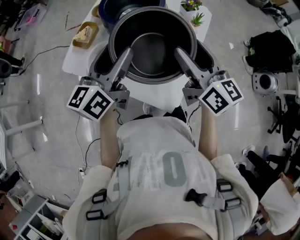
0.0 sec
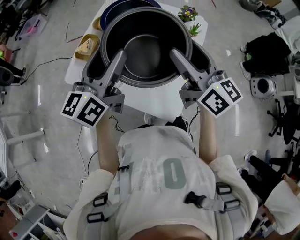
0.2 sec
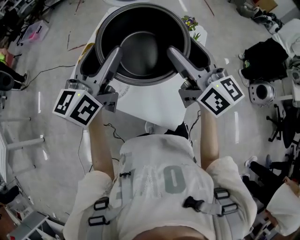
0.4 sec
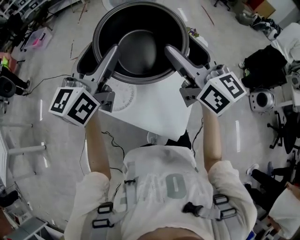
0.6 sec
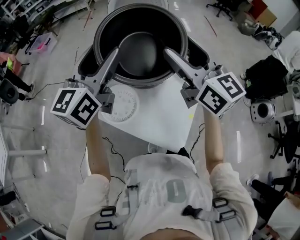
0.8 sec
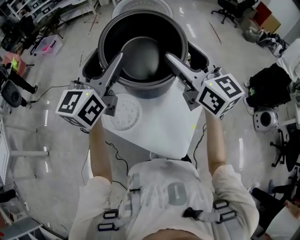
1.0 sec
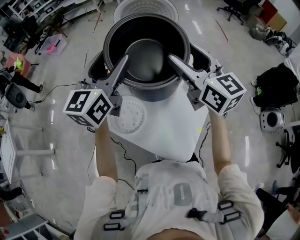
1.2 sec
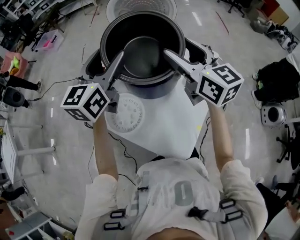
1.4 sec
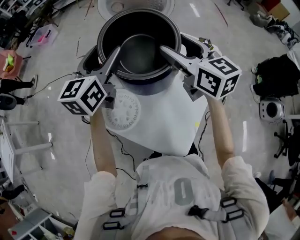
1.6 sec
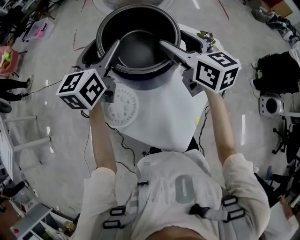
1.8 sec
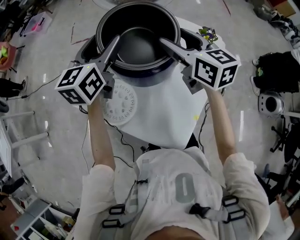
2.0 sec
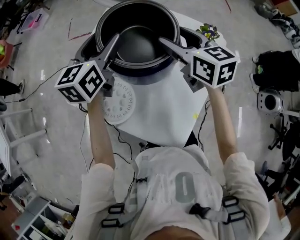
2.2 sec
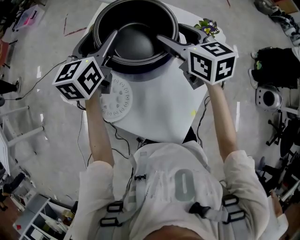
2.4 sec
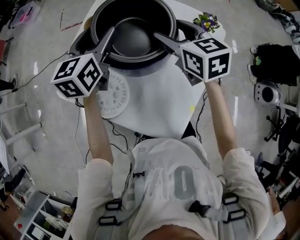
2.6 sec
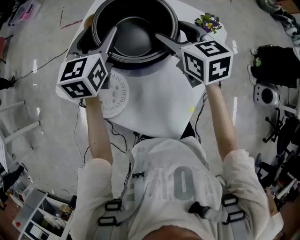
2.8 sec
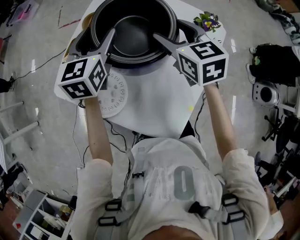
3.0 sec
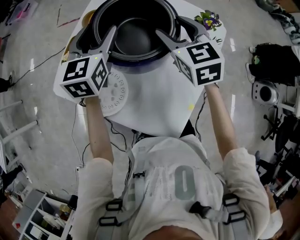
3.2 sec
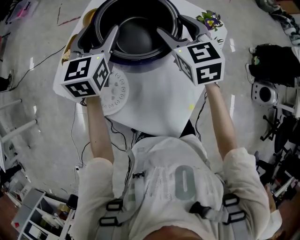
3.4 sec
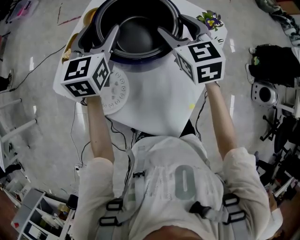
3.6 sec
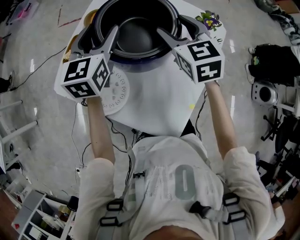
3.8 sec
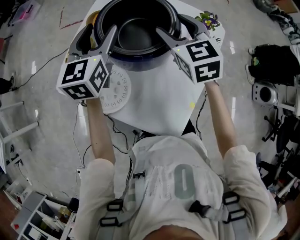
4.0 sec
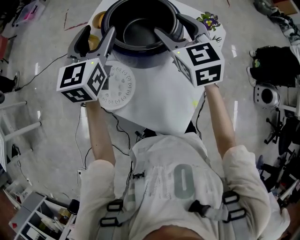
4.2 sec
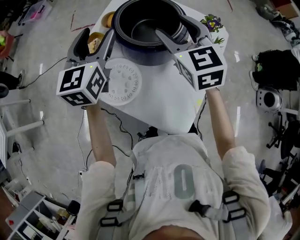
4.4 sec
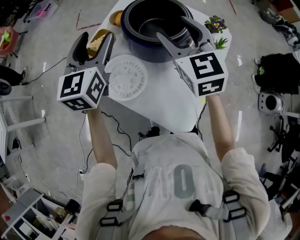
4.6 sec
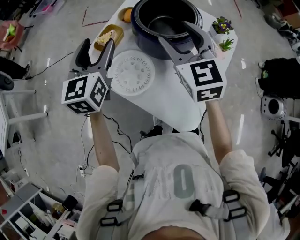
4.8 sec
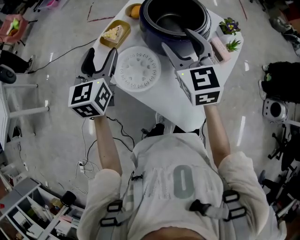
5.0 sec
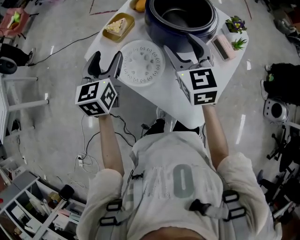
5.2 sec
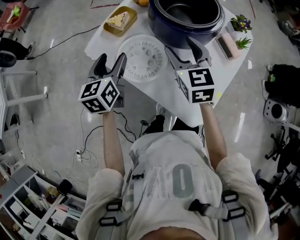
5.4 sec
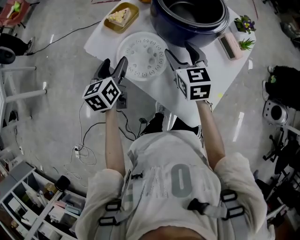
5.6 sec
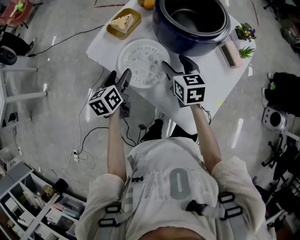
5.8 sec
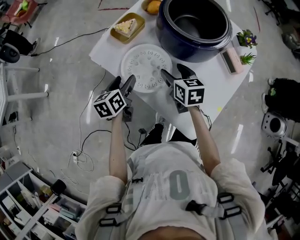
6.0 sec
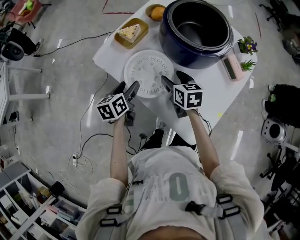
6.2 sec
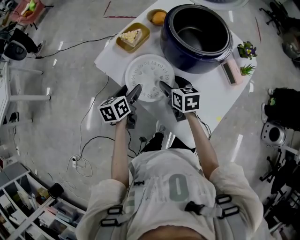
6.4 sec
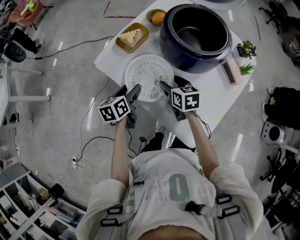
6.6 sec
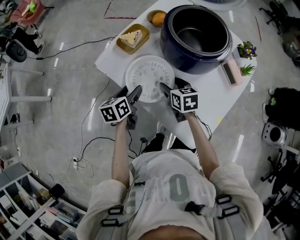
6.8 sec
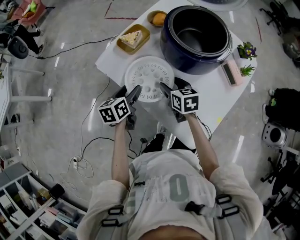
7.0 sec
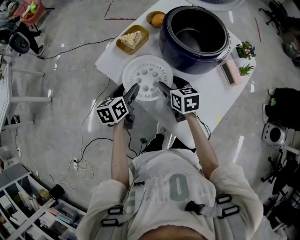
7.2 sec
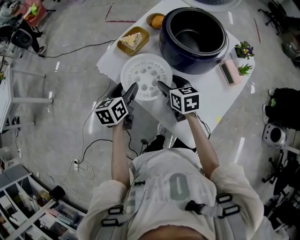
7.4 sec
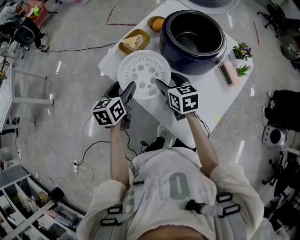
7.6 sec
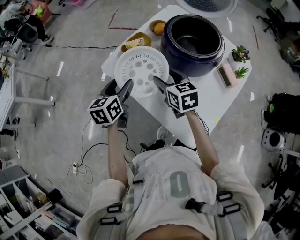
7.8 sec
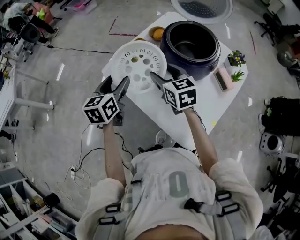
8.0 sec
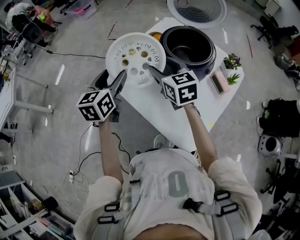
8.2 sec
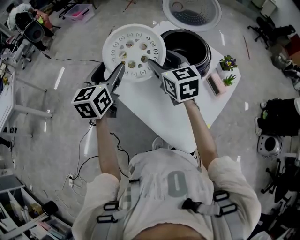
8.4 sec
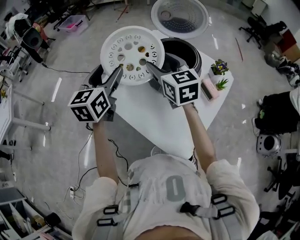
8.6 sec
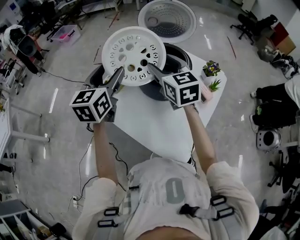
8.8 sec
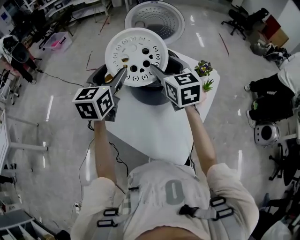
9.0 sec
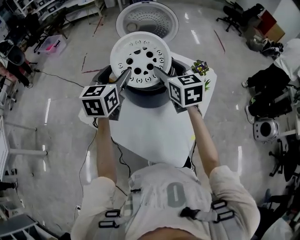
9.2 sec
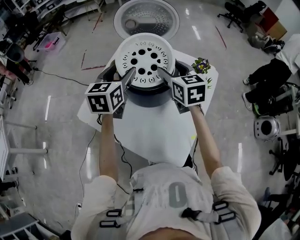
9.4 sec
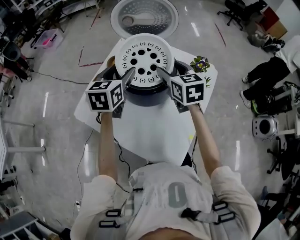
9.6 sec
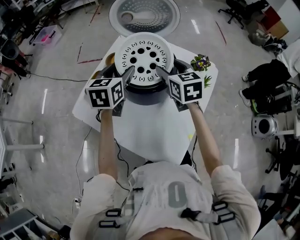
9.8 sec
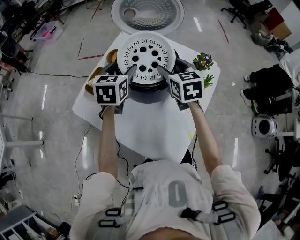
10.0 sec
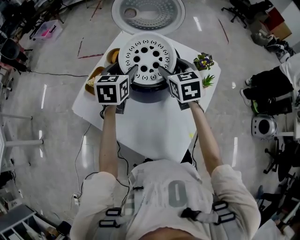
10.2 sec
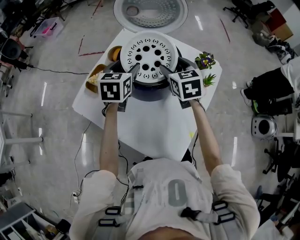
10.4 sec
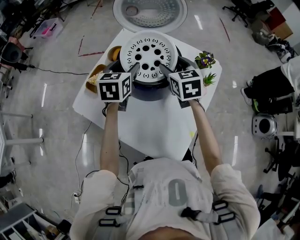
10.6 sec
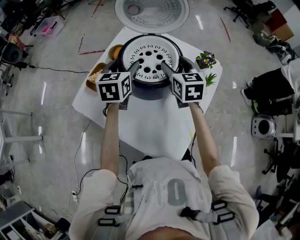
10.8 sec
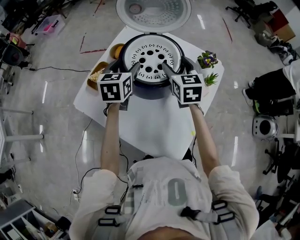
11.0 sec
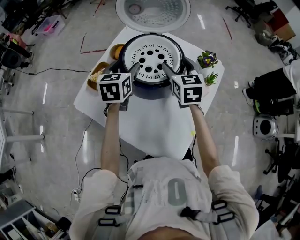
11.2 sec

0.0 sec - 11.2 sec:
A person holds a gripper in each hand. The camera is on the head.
0.0 sec - 1.6 sec: The grippers both shift forward by roughly 20 cm. The left gripper turns by some 20 degrees.
1.6 sec - 3.2 sec: Both grippers move downward, approximately 15 cm. The right gripper turns by roughly 30 degrees.
3.2 sec - 4.8 sec: The right gripper moves to the left, backward and upward, some 20 cm; the left gripper heads backward, to the left and upward, covering about 20 cm.
4.8 sec - 6.4 sec: Both grippers move downward, some 25 cm. The right gripper changes its angle by roughly 40 degrees. The left gripper changes its angle by roughly 40 degrees.
6.4 sec - 8.0 sec: The two grippers go roughly 15 cm upward. The right gripper swivels approximately 20 degrees. The left gripper changes its angle by about 20 degrees.
8.0 sec - 9.6 sec: The grippers both shift to the right and forward by about 25 cm. The right gripper swivels approximately 20 degrees. The left gripper swivels approximately 20 degrees.
9.6 sec - 11.2 sec: The left gripper is displaced downward by about 5 cm.

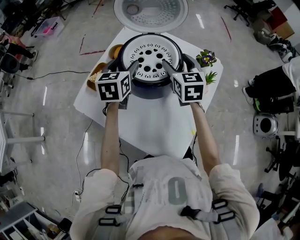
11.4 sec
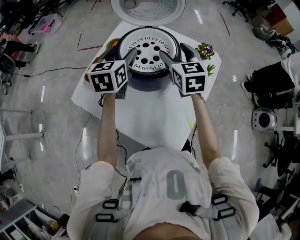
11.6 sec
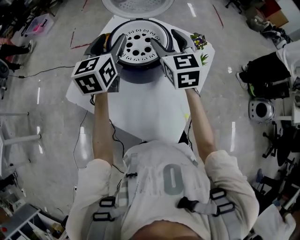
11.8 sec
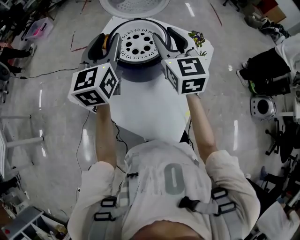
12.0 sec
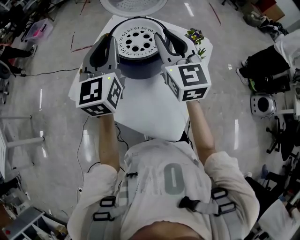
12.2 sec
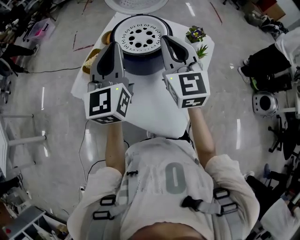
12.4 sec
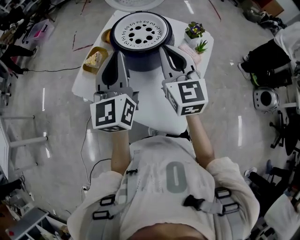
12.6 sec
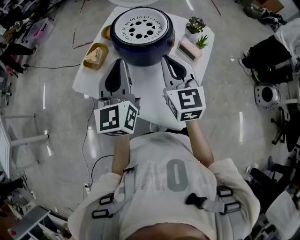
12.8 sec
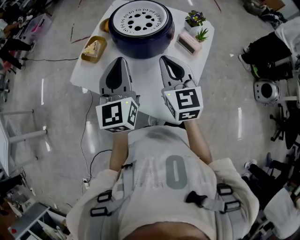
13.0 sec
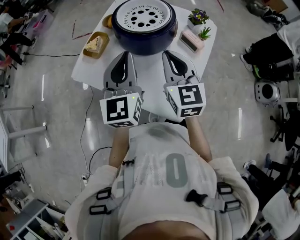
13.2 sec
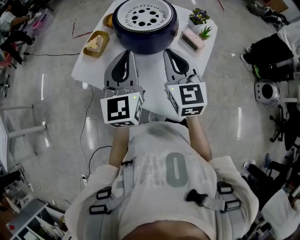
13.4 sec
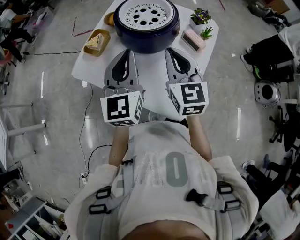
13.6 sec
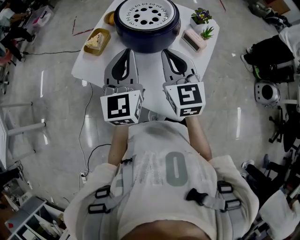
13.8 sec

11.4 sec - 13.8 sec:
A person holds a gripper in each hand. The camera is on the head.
11.4 sec - 12.6 sec: The grippers both shift backward and upward by roughly 20 cm. The left gripper points its fingers roughly 30 degrees further upward, and closes its fingers. Meanwhile the right gripper closes its fingers.
12.6 sec - 13.8 sec: Both grippers travel together downward, approximately 5 cm.

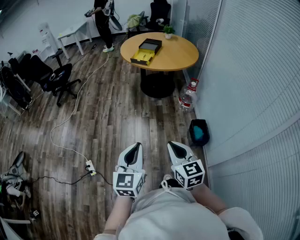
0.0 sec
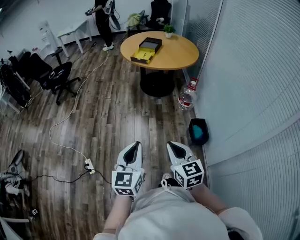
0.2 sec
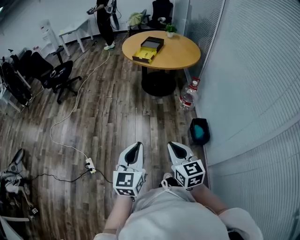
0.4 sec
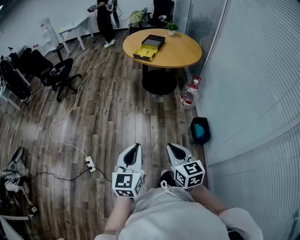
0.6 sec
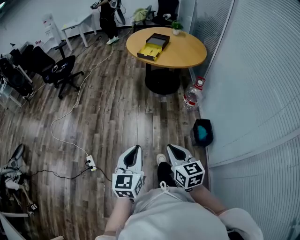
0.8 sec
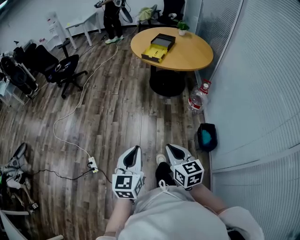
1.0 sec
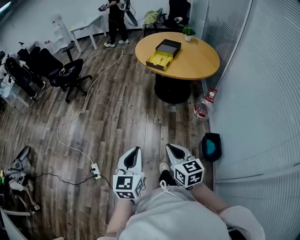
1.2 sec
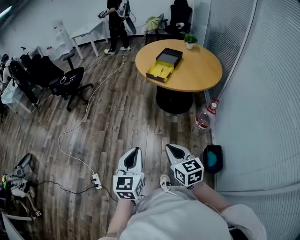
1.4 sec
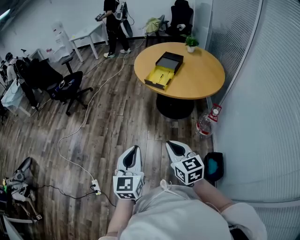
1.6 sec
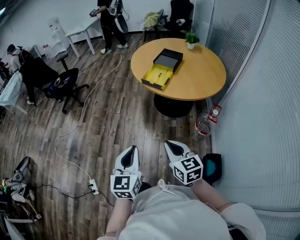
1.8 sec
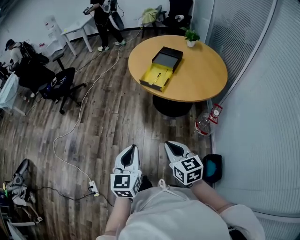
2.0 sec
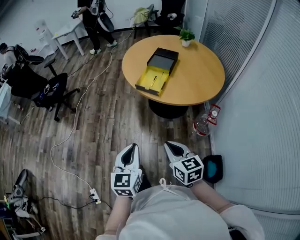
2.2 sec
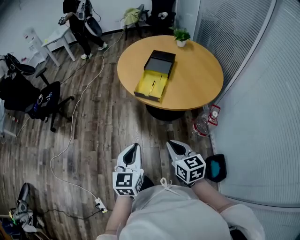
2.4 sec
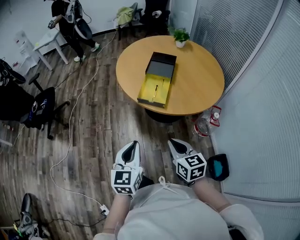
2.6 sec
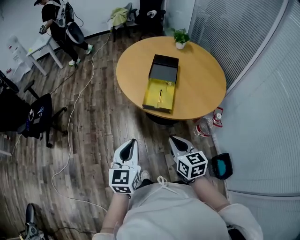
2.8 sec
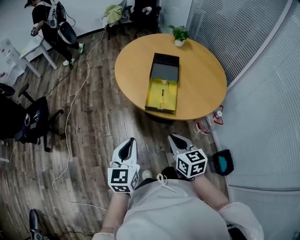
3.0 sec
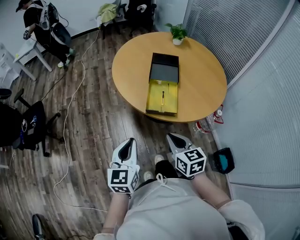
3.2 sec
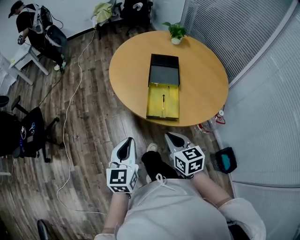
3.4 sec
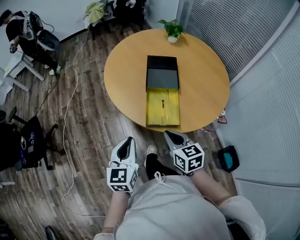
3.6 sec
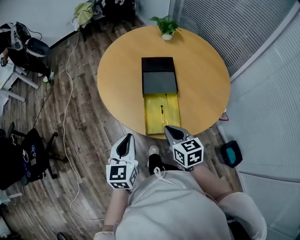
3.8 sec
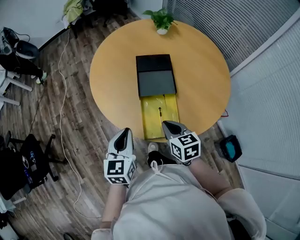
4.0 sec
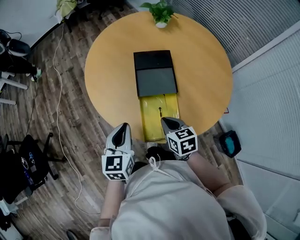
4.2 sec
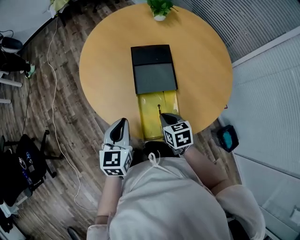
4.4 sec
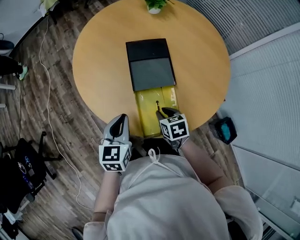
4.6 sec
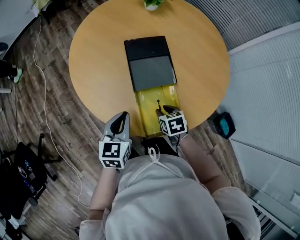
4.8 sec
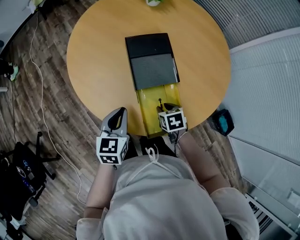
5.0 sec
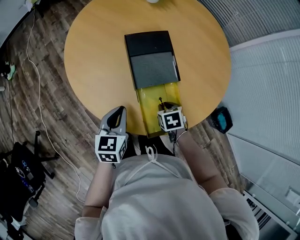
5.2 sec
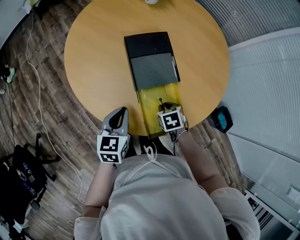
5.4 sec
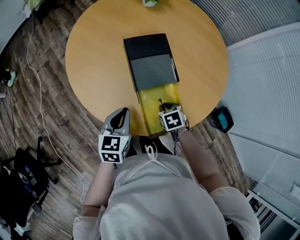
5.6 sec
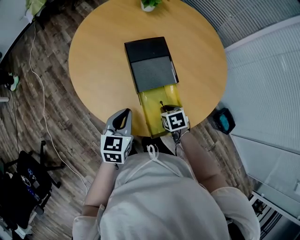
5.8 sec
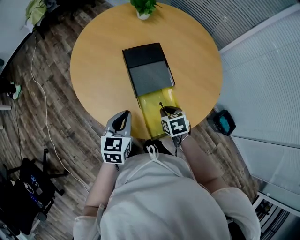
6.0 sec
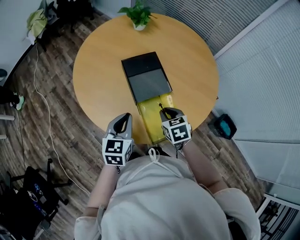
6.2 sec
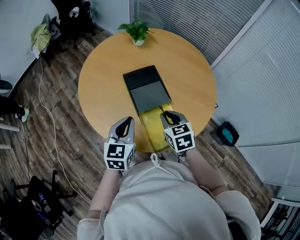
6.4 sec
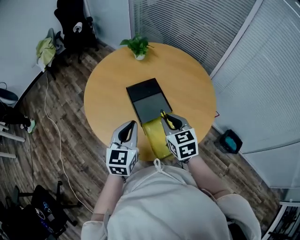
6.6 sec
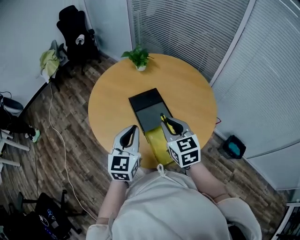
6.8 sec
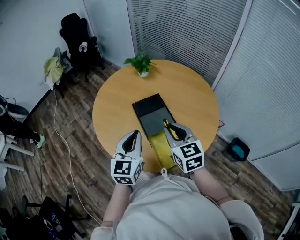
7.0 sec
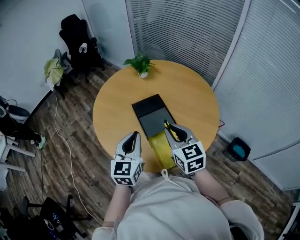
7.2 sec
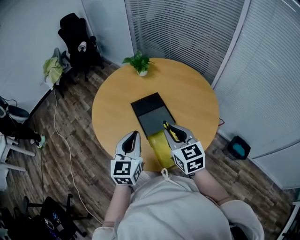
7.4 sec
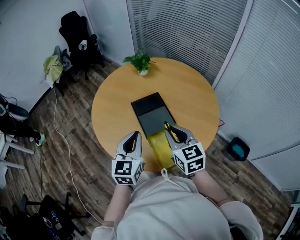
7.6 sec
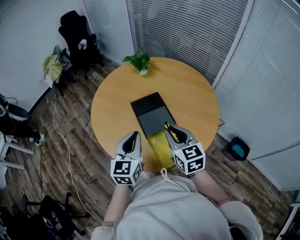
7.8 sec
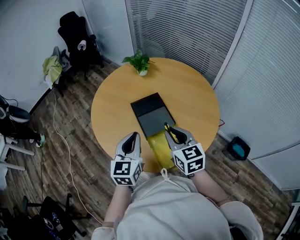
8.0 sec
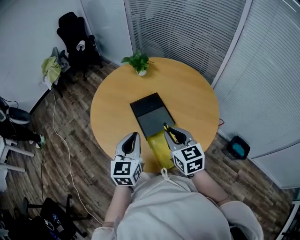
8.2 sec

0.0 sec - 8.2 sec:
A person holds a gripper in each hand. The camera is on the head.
0.0 sec - 1.6 sec: The two grippers go roughly 35 cm forward.
1.6 sec - 3.2 sec: The pair of grippers is taken forward, approximately 50 cm. The left gripper turns by some 20 degrees. Meanwhile the right gripper rotates approximately 30 degrees.
3.2 sec - 5.0 sec: The right gripper travels forward and downward by roughly 40 cm, tilts its fingers approximately 40 degrees downward, and opens its fingers. Meanwhile the left gripper goes some 40 cm forward, and swivels approximately 30 degrees.
5.0 sec - 6.6 sec: The left gripper moves upward, about 15 cm, and changes its angle by roughly 20 degrees. The right gripper heads upward, covering about 25 cm, and tips its fingers upward by approximately 40 degrees.

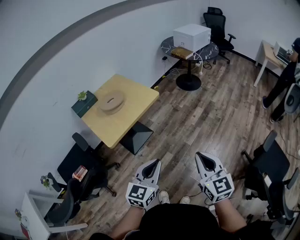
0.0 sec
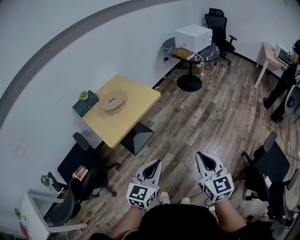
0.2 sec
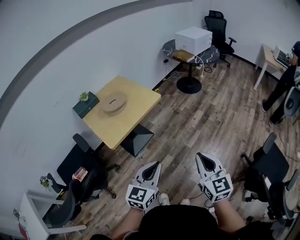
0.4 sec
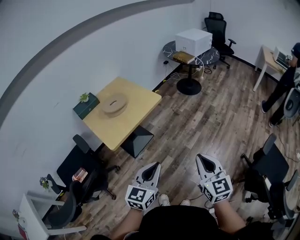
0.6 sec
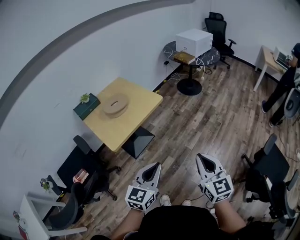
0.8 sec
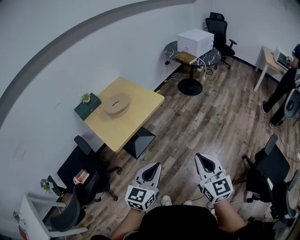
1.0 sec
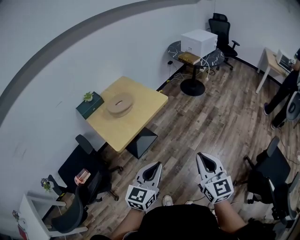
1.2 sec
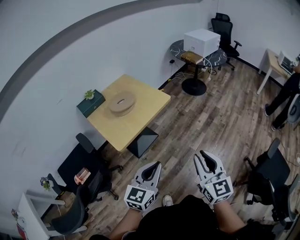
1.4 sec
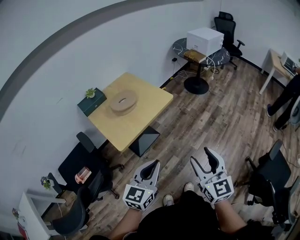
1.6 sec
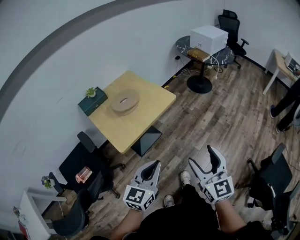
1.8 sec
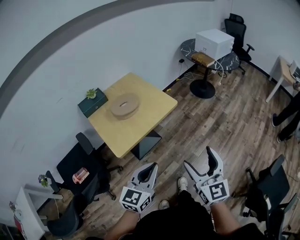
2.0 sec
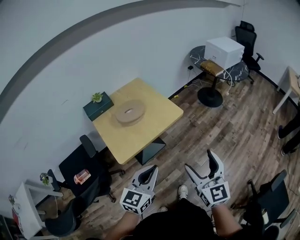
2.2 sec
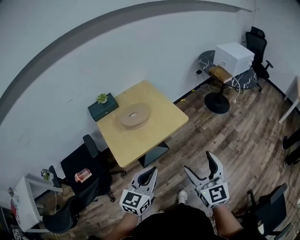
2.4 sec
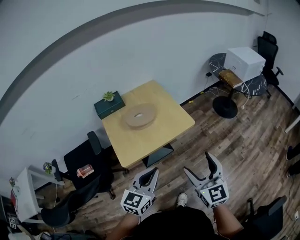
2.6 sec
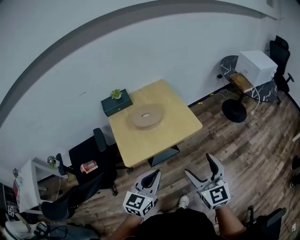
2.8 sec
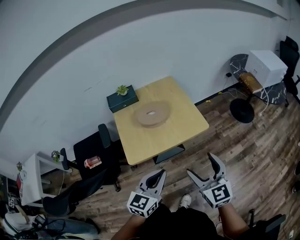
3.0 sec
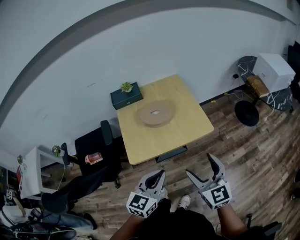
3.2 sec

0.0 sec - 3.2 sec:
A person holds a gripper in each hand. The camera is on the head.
0.0 sec - 1.6 sec: The two grippers go roughly 10 cm to the left. The right gripper opens up.
1.6 sec - 3.2 sec: The left gripper changes place by about 20 cm, and turns by about 30 degrees. Meanwhile the right gripper moves approximately 30 cm, and changes its angle by about 40 degrees.
